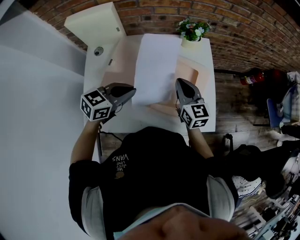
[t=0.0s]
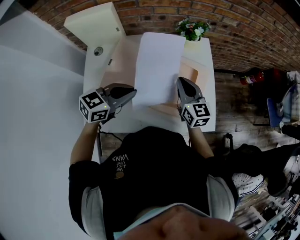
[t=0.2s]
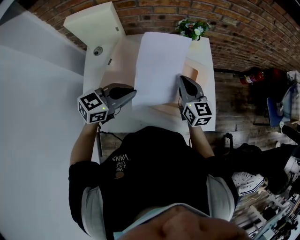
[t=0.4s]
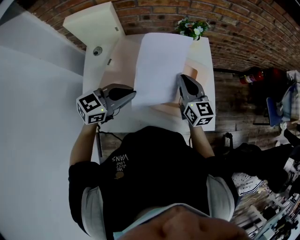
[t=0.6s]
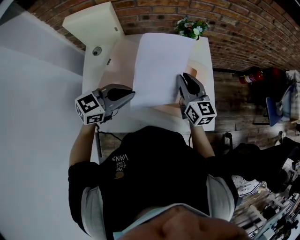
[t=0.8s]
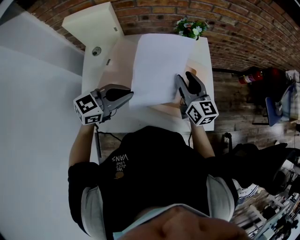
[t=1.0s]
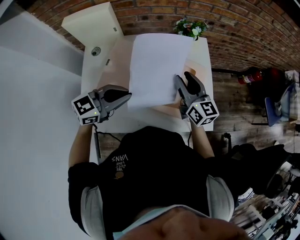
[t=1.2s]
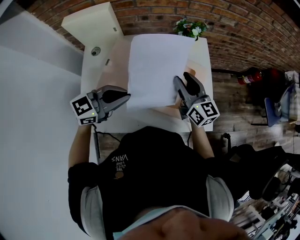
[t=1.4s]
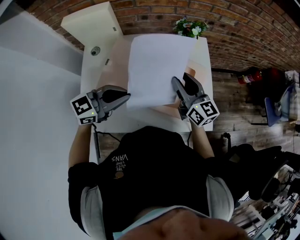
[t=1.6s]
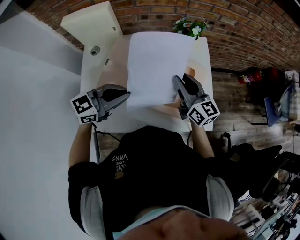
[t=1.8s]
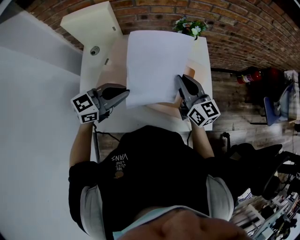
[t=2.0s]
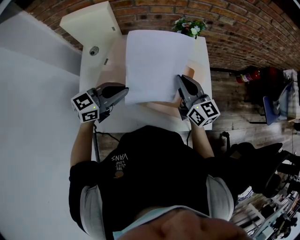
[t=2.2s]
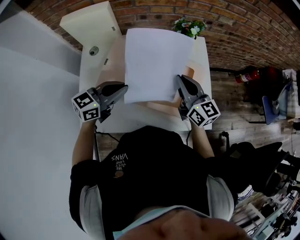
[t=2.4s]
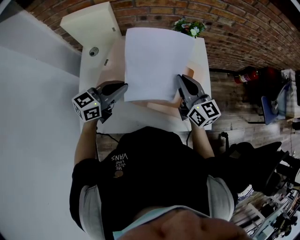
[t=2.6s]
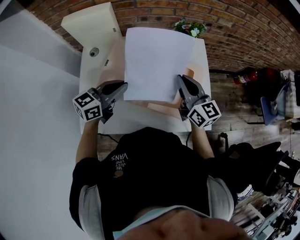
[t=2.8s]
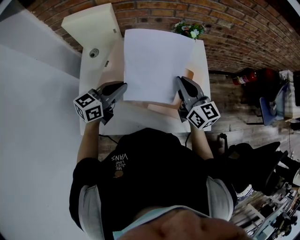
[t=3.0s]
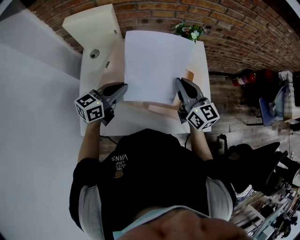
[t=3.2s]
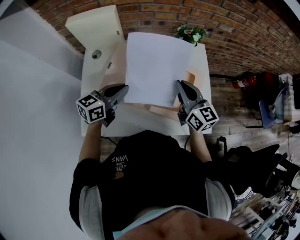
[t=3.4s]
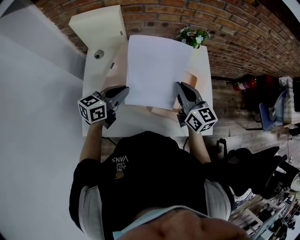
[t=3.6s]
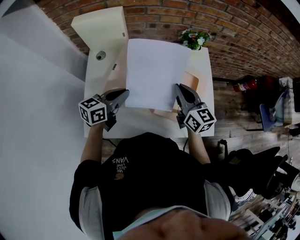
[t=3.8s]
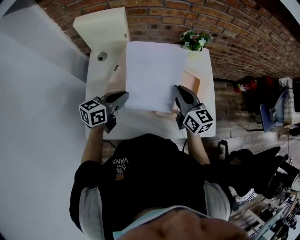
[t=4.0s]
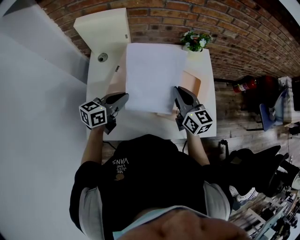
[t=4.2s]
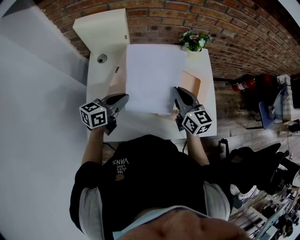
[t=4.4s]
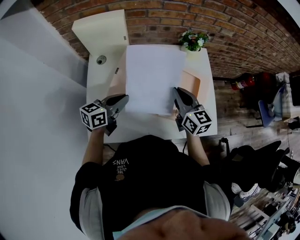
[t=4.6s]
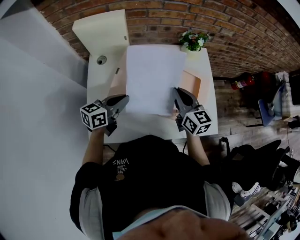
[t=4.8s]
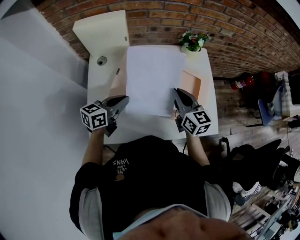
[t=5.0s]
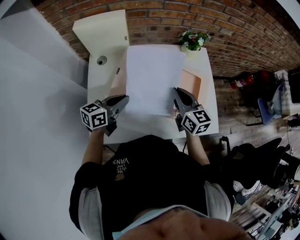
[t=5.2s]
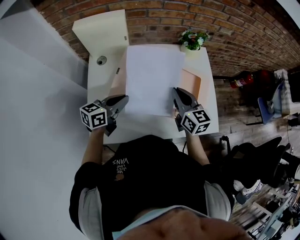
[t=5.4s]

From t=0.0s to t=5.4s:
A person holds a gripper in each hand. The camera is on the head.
From t=0.0s to t=1.4s: The left gripper changes place by approximately 5 cm, while the right gripper opens its fingers.
From t=1.4s to t=2.8s: The right gripper closes up. The left gripper changes place by some 5 cm, and swivels some 20 degrees.
From t=2.8s to t=4.0s: Both grippers travel together to the left, roughly 5 cm.
From t=4.0s to t=5.4s: The grippers make only small movements.

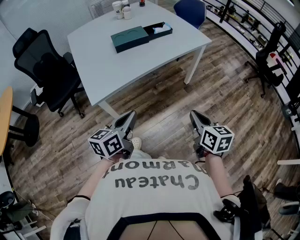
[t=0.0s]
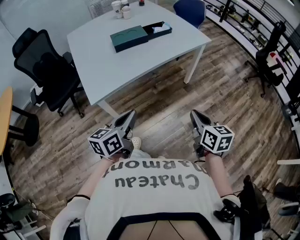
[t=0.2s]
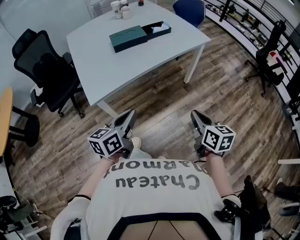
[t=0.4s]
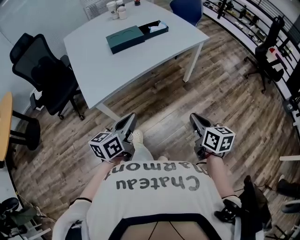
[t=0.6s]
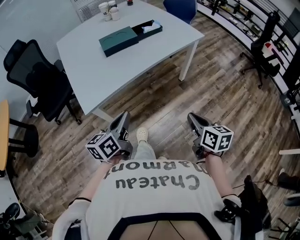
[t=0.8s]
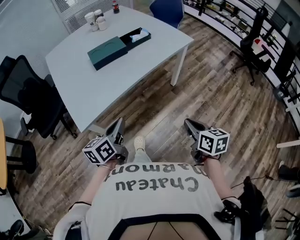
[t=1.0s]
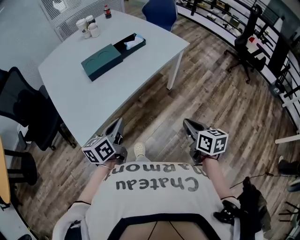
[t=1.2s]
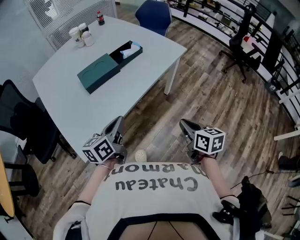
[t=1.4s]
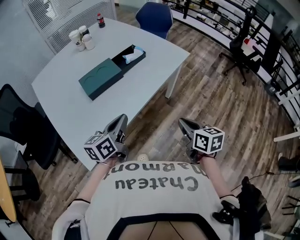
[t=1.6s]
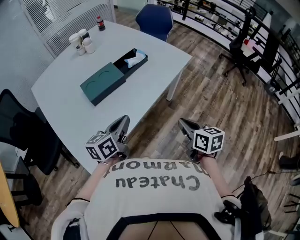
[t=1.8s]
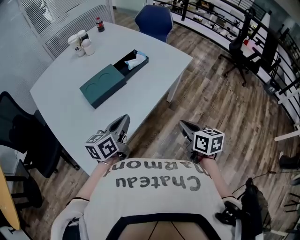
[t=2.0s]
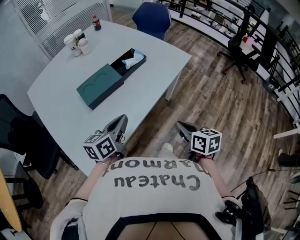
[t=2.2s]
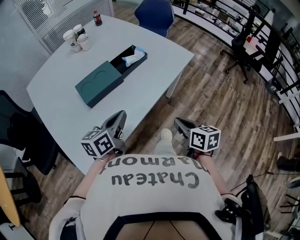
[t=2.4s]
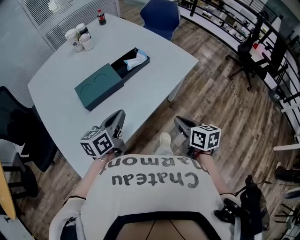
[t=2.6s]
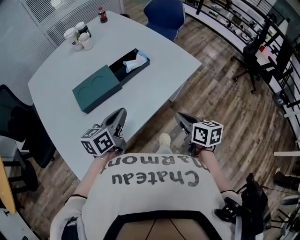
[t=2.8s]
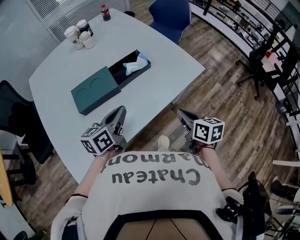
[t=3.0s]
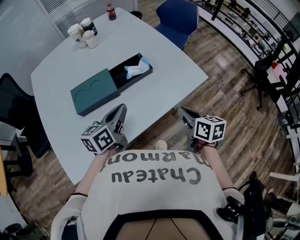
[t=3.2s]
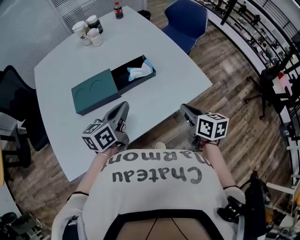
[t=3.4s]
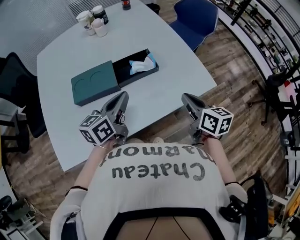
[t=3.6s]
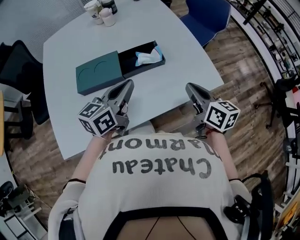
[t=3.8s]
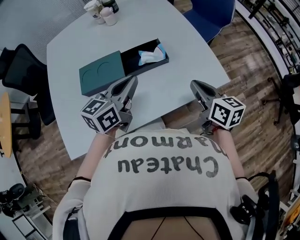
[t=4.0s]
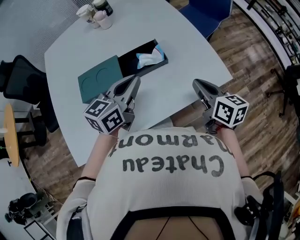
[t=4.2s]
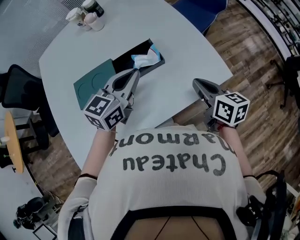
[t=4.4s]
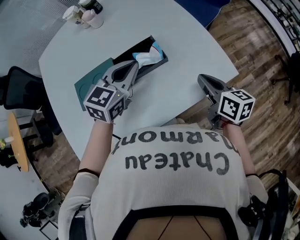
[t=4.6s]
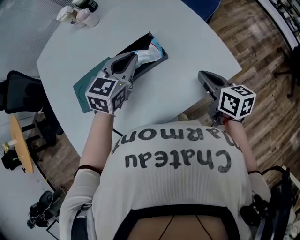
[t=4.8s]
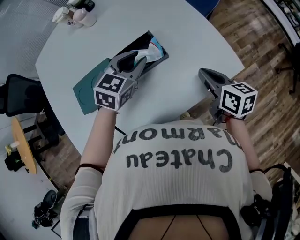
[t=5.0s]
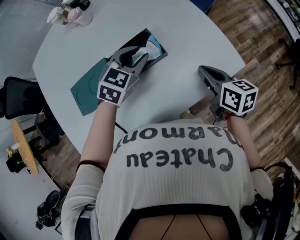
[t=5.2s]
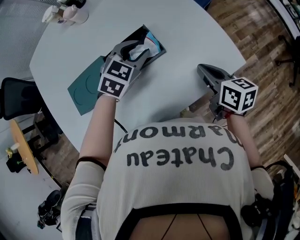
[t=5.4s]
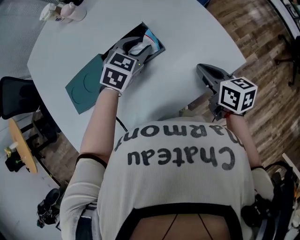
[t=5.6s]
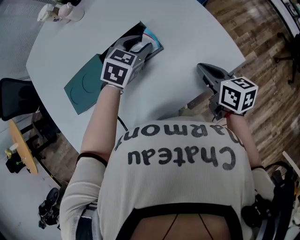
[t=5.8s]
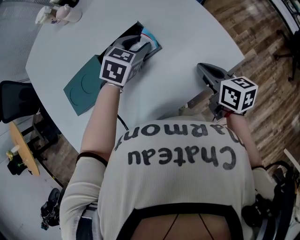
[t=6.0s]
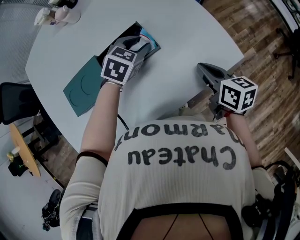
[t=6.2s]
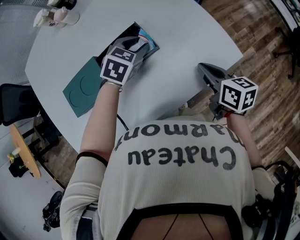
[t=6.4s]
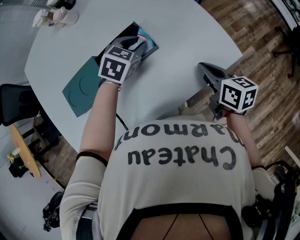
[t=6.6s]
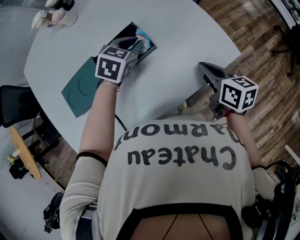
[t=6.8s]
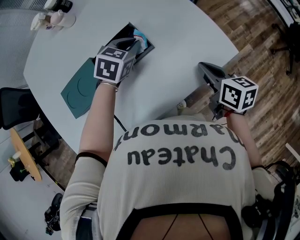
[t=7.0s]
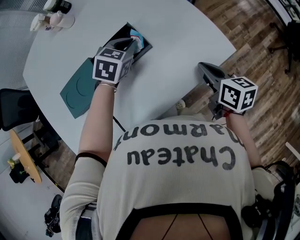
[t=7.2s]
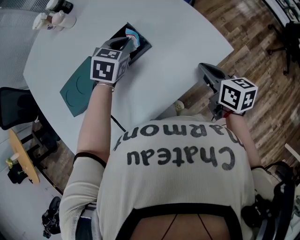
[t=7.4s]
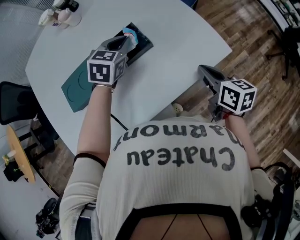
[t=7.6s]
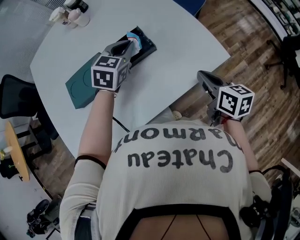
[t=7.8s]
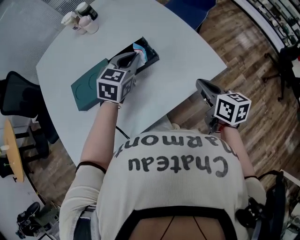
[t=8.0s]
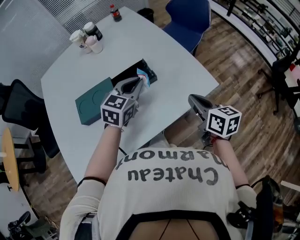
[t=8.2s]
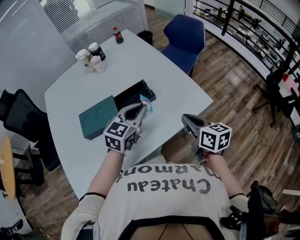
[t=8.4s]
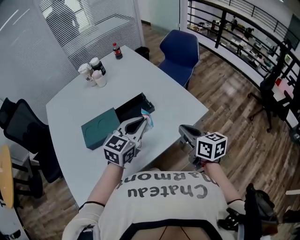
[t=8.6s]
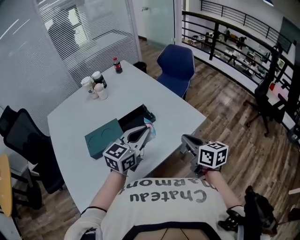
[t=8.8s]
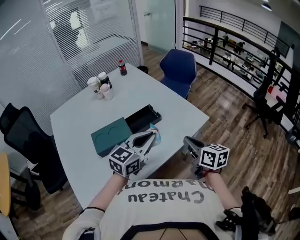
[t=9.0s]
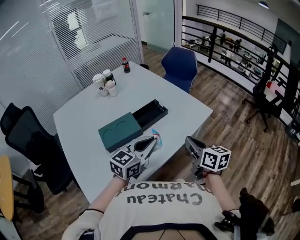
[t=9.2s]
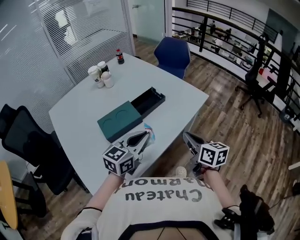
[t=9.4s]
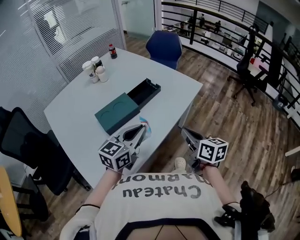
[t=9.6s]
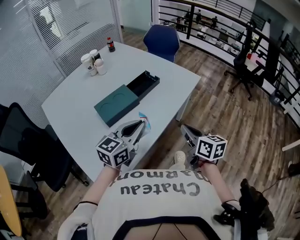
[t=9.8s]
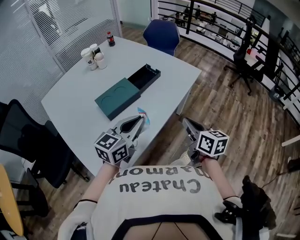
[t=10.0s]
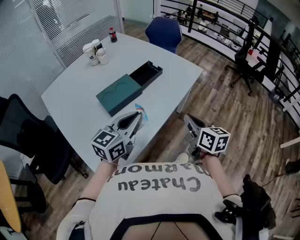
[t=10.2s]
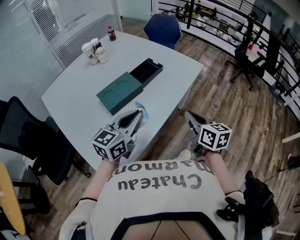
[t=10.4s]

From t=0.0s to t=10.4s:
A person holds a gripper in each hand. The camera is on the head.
From t=0.0s to t=1.4s: The right gripper heads forward, covering about 15 cm. Meanwhile the left gripper goes some 20 cm forward.
From t=1.4s to t=3.0s: Both grippers travel together forward, roughly 25 cm.
From t=3.0s to t=4.4s: The right gripper shifts approximately 20 cm forward, while the left gripper travels forward and to the right by approximately 20 cm, and changes its angle by some 30 degrees.
From t=4.4s to t=6.0s: The right gripper is displaced downward by roughly 5 cm; the left gripper shifts roughly 20 cm downward and forward, tips its fingers downward by about 30 degrees, and opens its fingers.
From t=6.0s to t=7.4s: The right gripper changes place by some 5 cm. The left gripper closes its fingers.
From t=7.4s to t=9.0s: The right gripper goes about 20 cm backward, upward and to the left, and rotates roughly 20 degrees, while the left gripper goes roughly 30 cm backward and upward, and points its fingers approximately 40 degrees further upward.
From t=9.0s to t=10.4s: The right gripper is displaced backward by roughly 20 cm; the left gripper is displaced backward and to the left by about 25 cm.

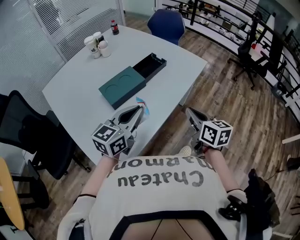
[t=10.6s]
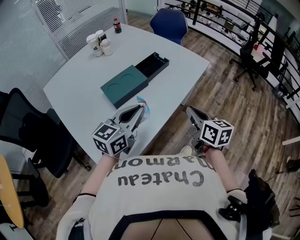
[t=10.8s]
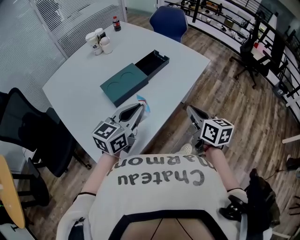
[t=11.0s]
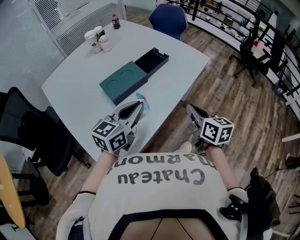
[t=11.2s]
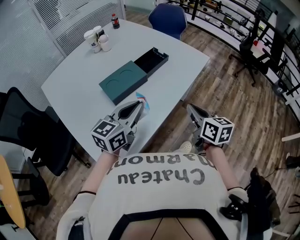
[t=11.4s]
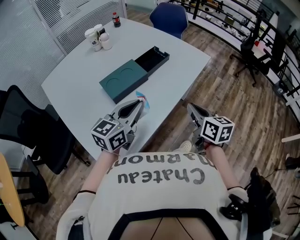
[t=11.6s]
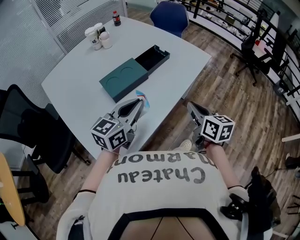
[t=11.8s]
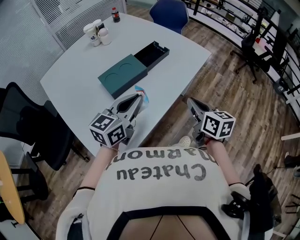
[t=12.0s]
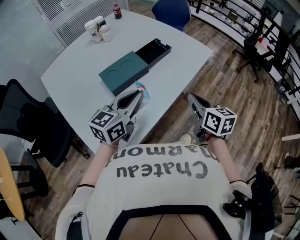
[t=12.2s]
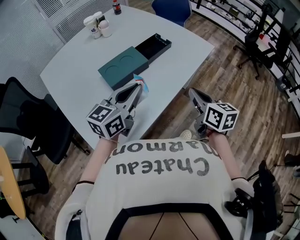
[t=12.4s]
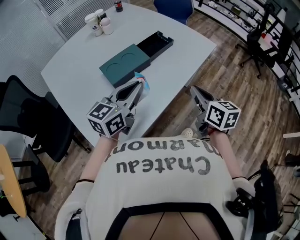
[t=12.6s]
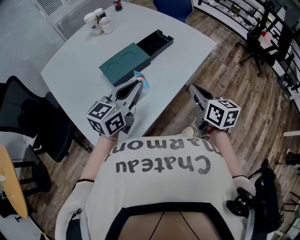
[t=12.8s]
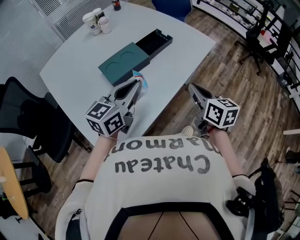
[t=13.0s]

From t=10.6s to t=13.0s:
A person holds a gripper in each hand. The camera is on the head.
From t=10.6s to t=13.0s: The grippers stay close to where they were, moving slightly.

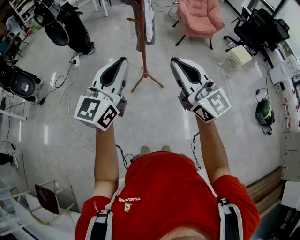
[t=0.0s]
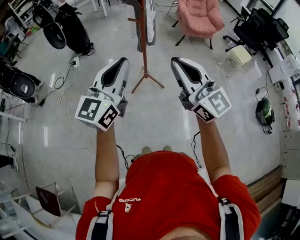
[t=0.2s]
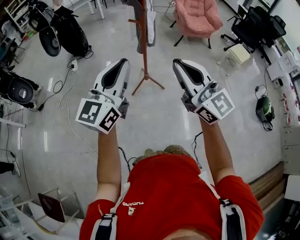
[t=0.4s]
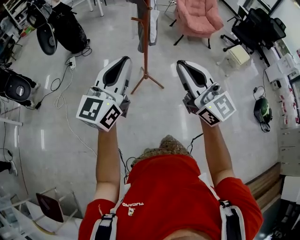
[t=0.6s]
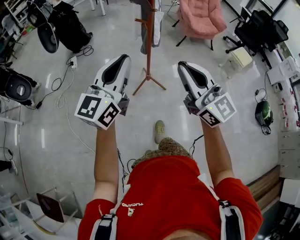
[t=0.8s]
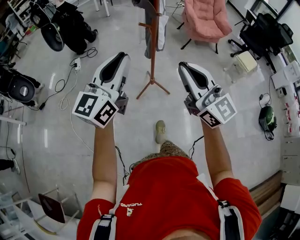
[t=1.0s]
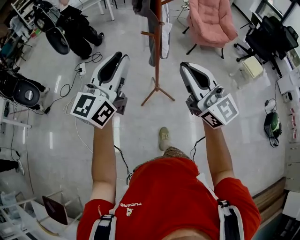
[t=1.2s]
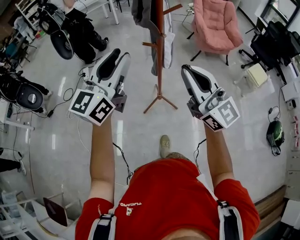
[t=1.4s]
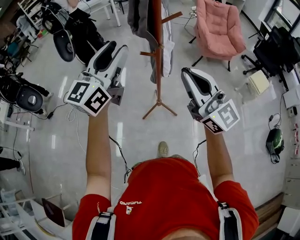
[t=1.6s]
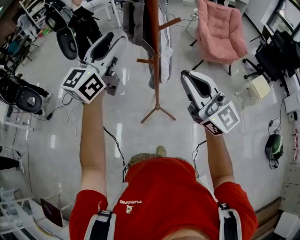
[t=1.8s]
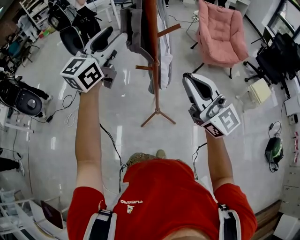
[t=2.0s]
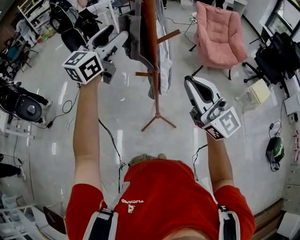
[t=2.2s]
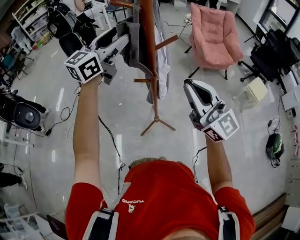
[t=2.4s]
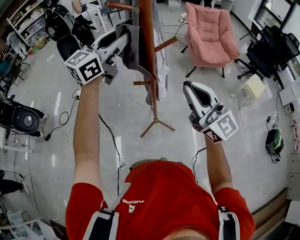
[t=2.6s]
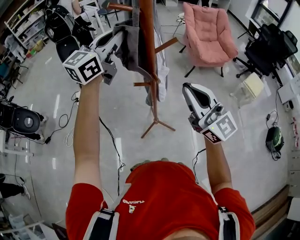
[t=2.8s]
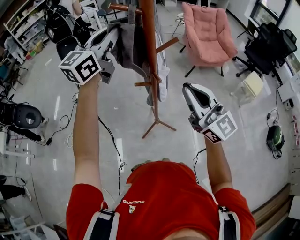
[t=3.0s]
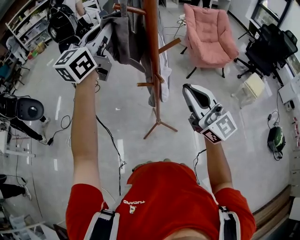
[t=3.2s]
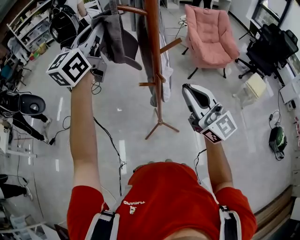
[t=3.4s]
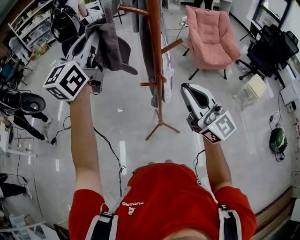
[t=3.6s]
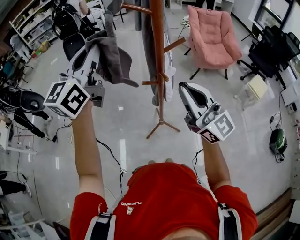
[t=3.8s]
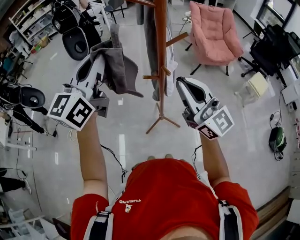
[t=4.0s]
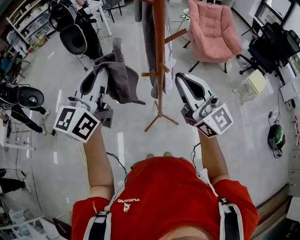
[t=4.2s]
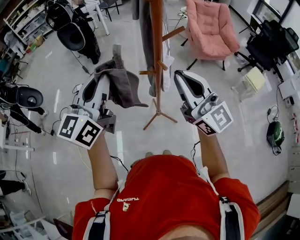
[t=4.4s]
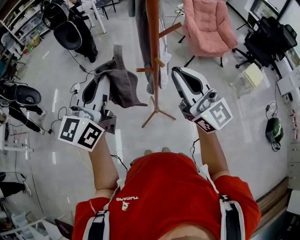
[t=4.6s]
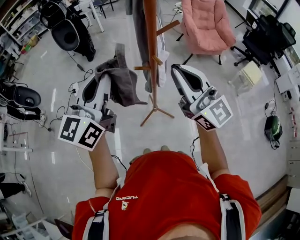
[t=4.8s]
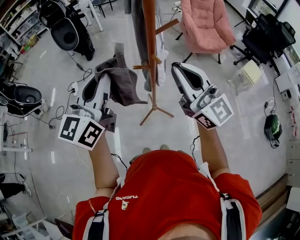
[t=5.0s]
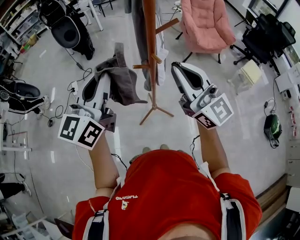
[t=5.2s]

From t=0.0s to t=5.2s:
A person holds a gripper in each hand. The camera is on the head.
From t=0.0s to t=1.8s: Both grippers travel together forward, about 35 cm. The left gripper opens up.
From t=1.8s to t=3.4s: The right gripper heads forward, covering about 5 cm, while the left gripper shifts approximately 15 cm forward and upward, and closes.
From t=3.4s to t=5.2s: The left gripper moves backward and downward, some 20 cm.
